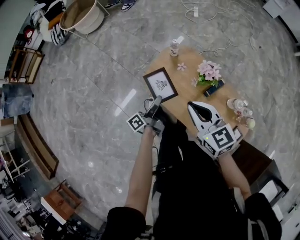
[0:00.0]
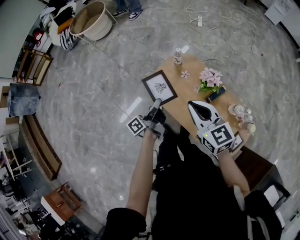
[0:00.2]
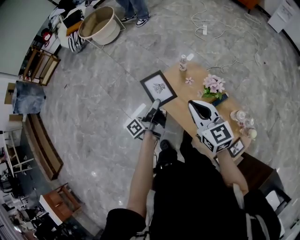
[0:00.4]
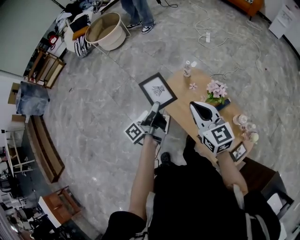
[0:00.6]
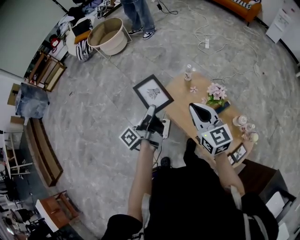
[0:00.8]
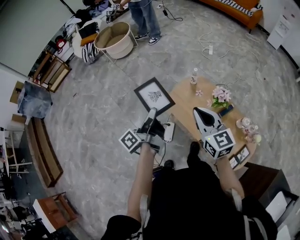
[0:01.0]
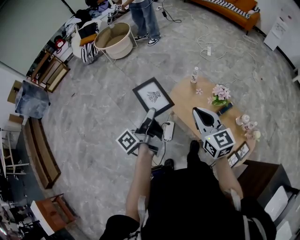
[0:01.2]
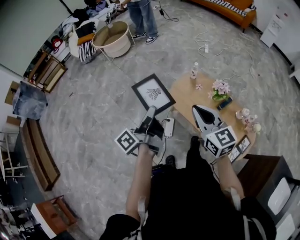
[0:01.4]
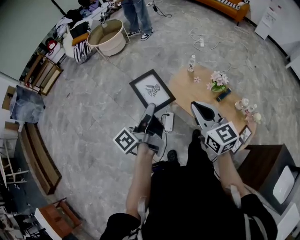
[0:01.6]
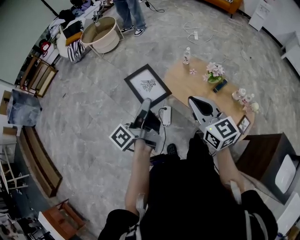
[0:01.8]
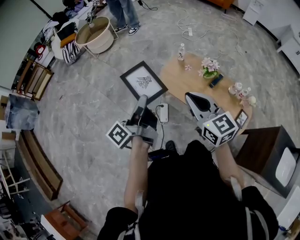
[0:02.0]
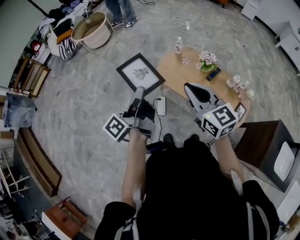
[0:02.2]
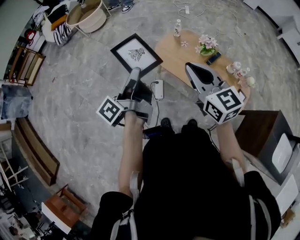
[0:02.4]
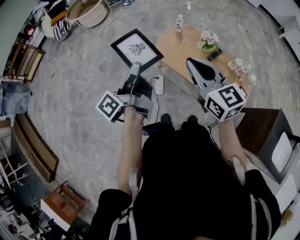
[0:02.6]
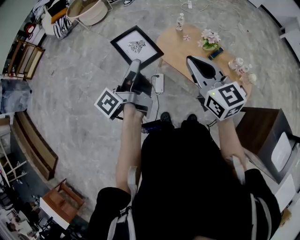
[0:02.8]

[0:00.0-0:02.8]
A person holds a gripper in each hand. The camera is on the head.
0:00.0 to 0:01.4: The left gripper shifts some 40 cm upward, to the left and backward; the right gripper travels to the left, upward and backward by approximately 25 cm.
0:01.4 to 0:02.8: The grippers move only a little.

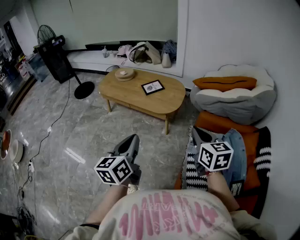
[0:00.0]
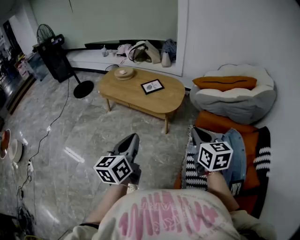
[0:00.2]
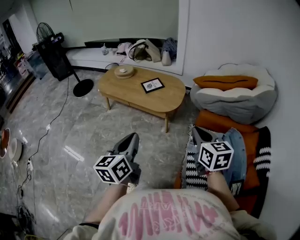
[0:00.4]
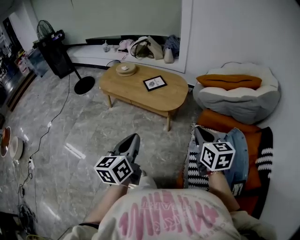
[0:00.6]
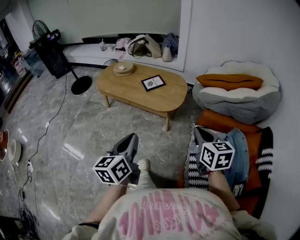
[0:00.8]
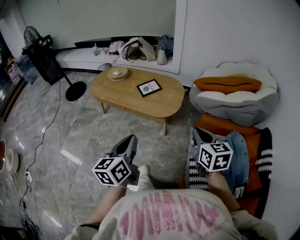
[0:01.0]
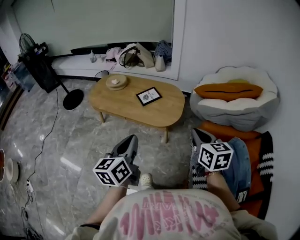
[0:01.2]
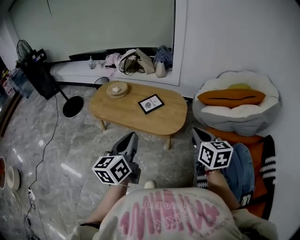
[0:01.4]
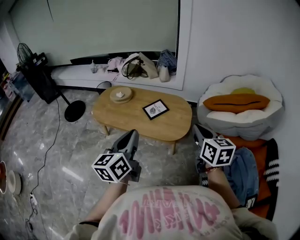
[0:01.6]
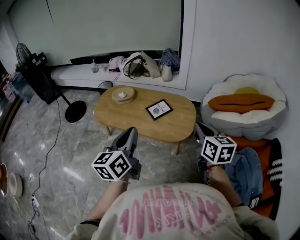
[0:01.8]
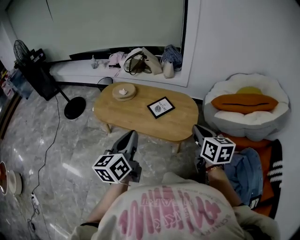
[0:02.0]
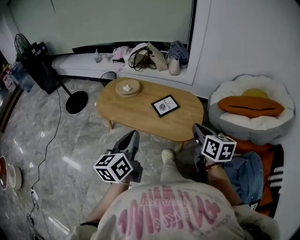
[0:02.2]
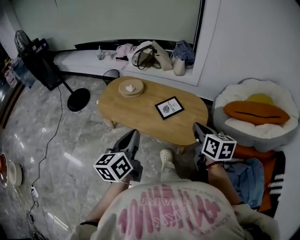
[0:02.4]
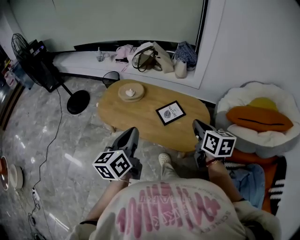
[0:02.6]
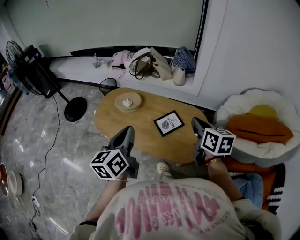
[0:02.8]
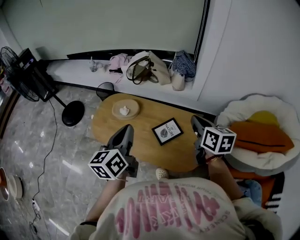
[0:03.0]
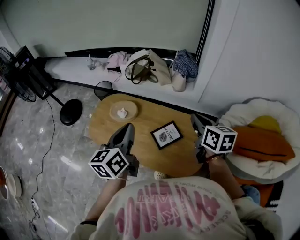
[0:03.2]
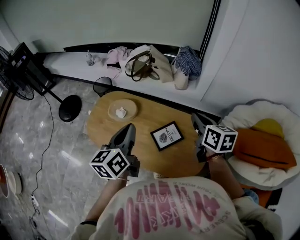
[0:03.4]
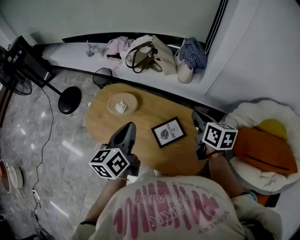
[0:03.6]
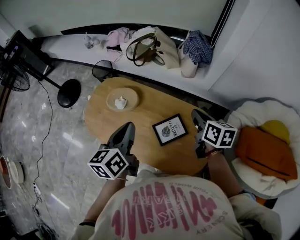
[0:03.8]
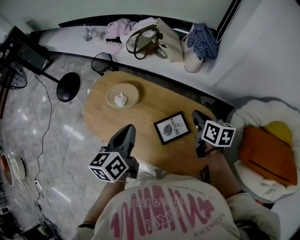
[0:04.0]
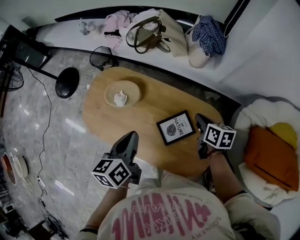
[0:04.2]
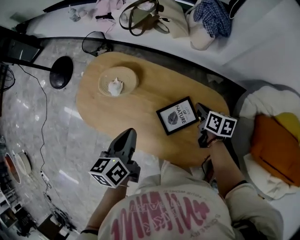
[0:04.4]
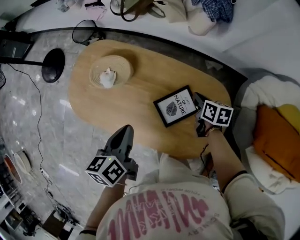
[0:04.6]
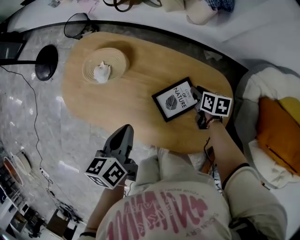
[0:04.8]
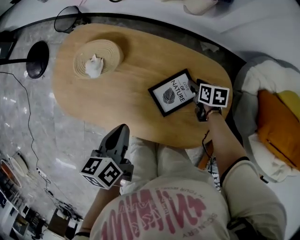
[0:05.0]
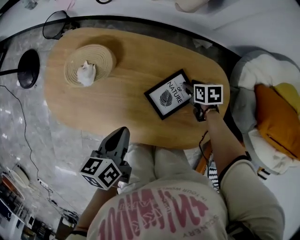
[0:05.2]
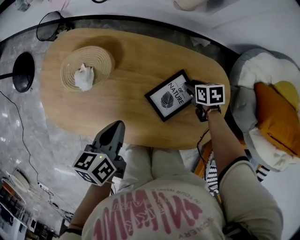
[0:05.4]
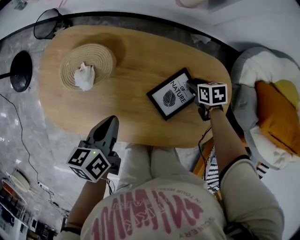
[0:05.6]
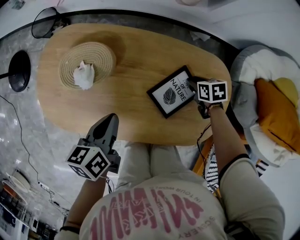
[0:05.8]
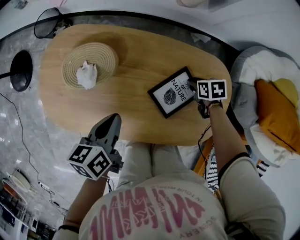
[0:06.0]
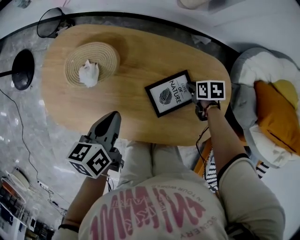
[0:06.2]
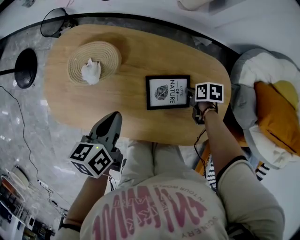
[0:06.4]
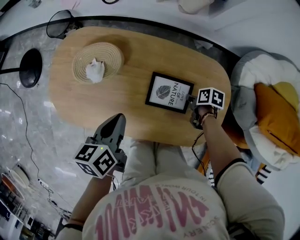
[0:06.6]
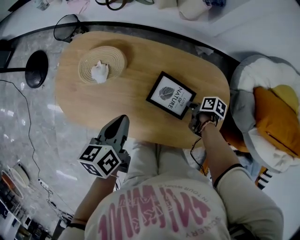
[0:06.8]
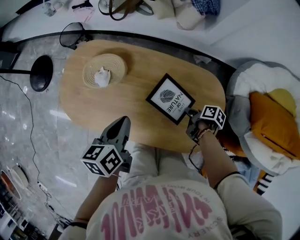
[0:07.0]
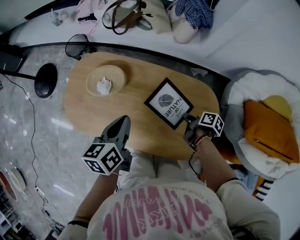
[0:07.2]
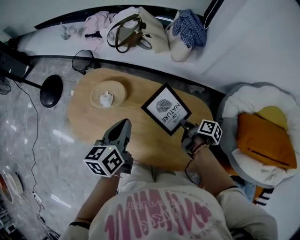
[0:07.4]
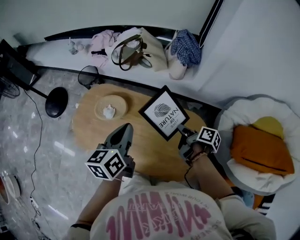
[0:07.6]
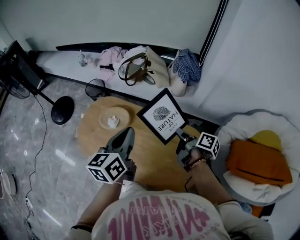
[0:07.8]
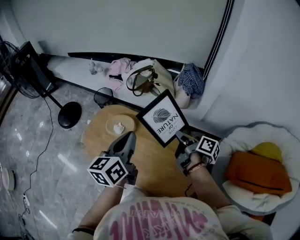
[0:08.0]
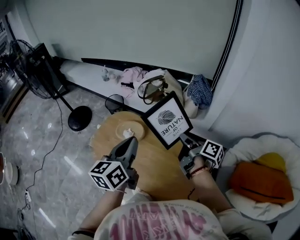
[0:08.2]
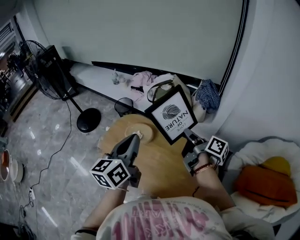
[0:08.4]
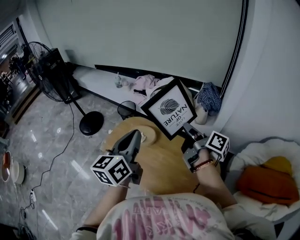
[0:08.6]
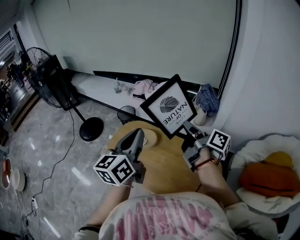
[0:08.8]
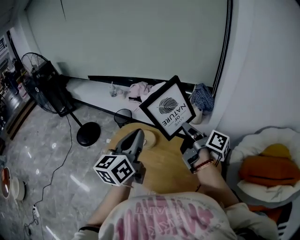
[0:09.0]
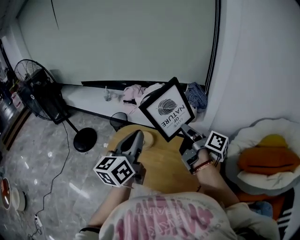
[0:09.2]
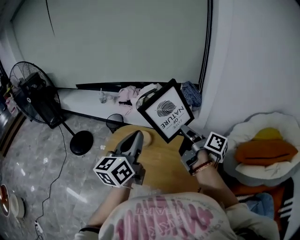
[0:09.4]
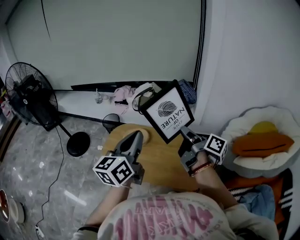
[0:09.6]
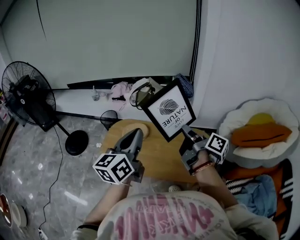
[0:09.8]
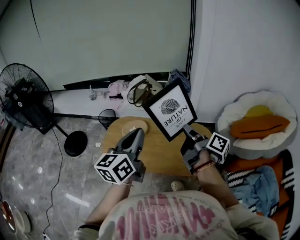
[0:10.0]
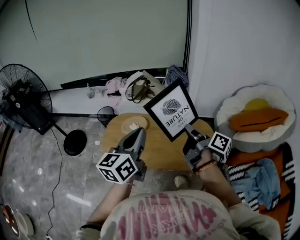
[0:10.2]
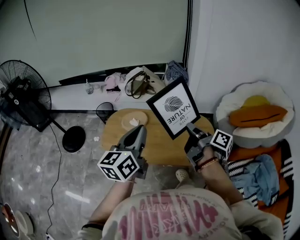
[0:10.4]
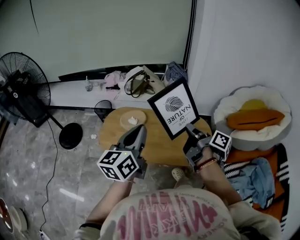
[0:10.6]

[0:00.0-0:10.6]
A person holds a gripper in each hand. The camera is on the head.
0:00.0 to 0:01.6: The two grippers go some 25 cm forward and to the left.
0:01.6 to 0:03.0: The grippers both shift forward by some 35 cm.
0:03.0 to 0:04.6: The two grippers go approximately 35 cm downward and forward. The right gripper rotates about 30 degrees; the left gripper swivels some 30 degrees.
0:04.6 to 0:06.0: Both grippers move downward, roughly 10 cm. The right gripper swivels roughly 20 degrees, and opens up.
0:06.0 to 0:07.6: Both grippers move upward, some 25 cm. The left gripper swivels approximately 30 degrees, while the right gripper angles its fingers upward, by roughly 40 degrees.
0:07.6 to 0:09.0: Both grippers move upward, roughly 25 cm. The left gripper rotates about 30 degrees; the right gripper tips its fingers upward by approximately 30 degrees.
0:09.0 to 0:10.6: The right gripper goes some 15 cm backward, and turns by approximately 20 degrees. Meanwhile the left gripper moves backward, approximately 5 cm.

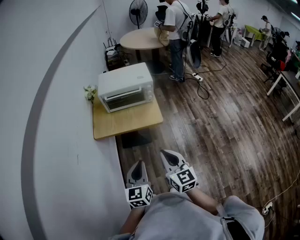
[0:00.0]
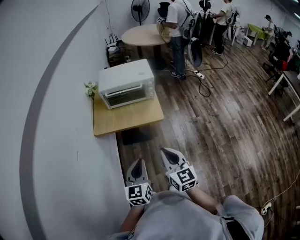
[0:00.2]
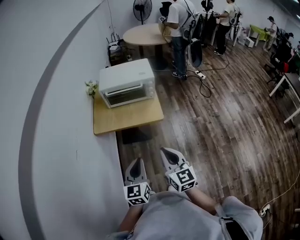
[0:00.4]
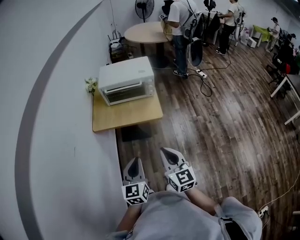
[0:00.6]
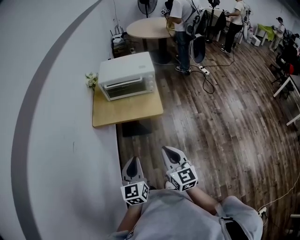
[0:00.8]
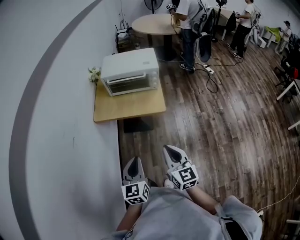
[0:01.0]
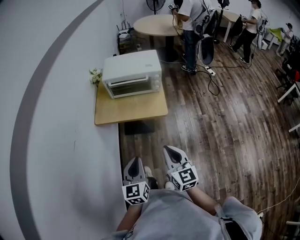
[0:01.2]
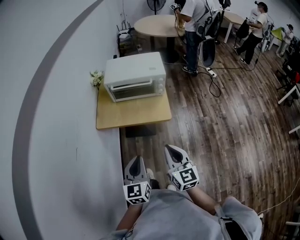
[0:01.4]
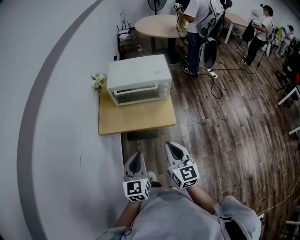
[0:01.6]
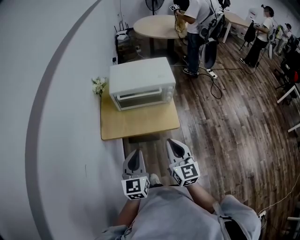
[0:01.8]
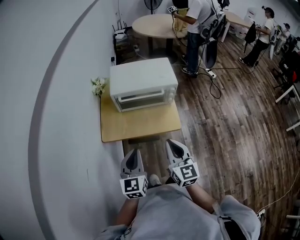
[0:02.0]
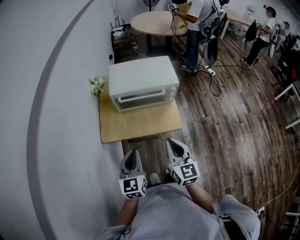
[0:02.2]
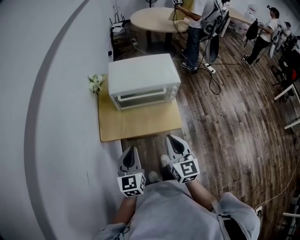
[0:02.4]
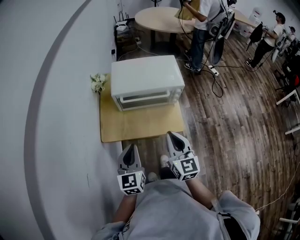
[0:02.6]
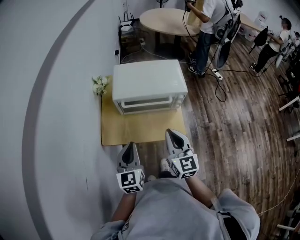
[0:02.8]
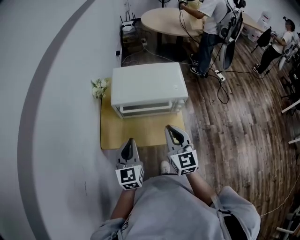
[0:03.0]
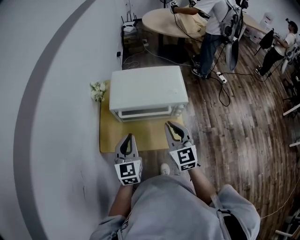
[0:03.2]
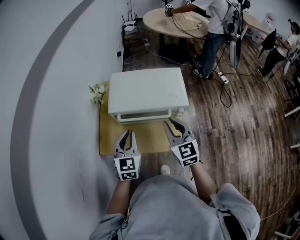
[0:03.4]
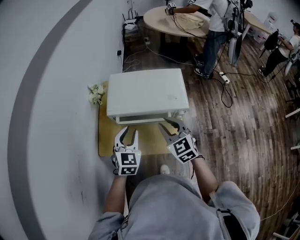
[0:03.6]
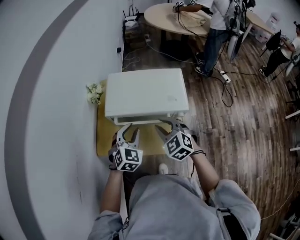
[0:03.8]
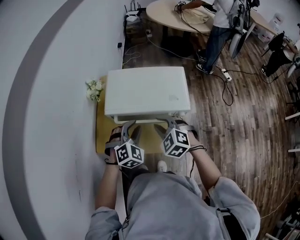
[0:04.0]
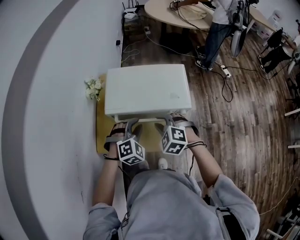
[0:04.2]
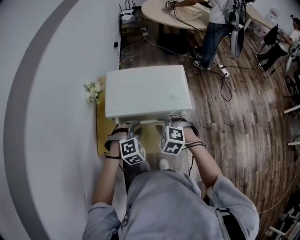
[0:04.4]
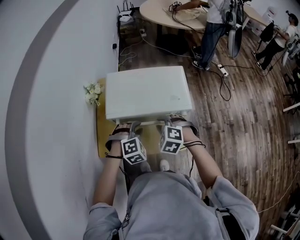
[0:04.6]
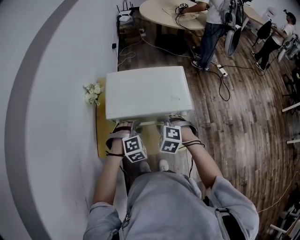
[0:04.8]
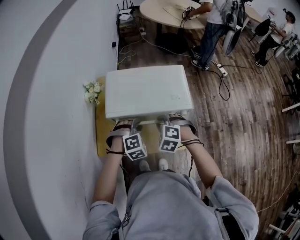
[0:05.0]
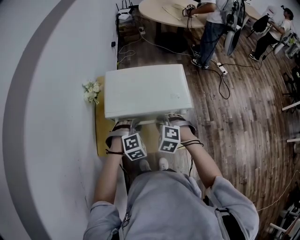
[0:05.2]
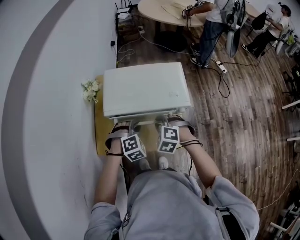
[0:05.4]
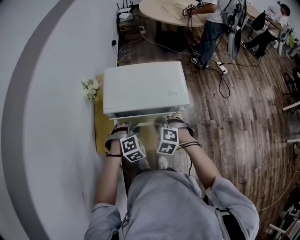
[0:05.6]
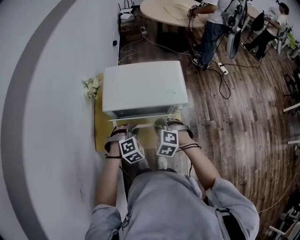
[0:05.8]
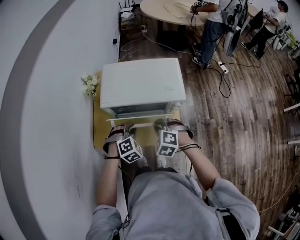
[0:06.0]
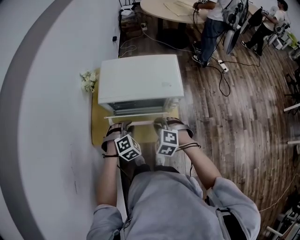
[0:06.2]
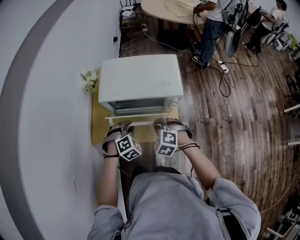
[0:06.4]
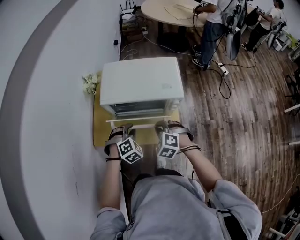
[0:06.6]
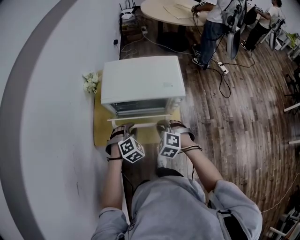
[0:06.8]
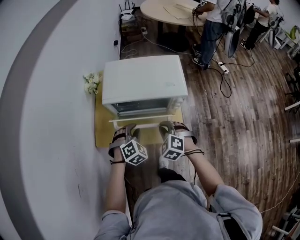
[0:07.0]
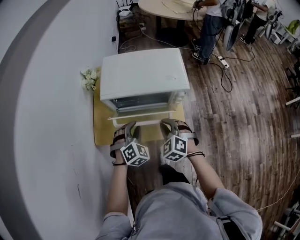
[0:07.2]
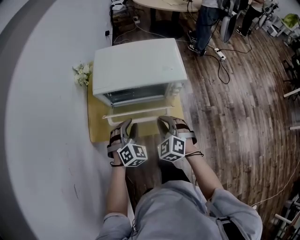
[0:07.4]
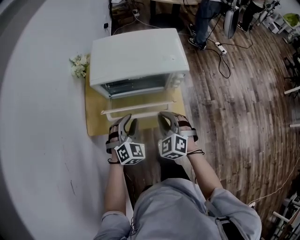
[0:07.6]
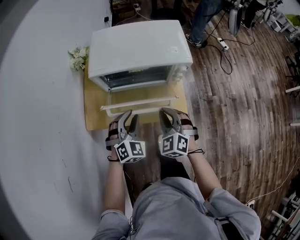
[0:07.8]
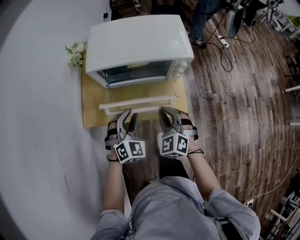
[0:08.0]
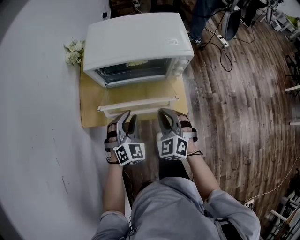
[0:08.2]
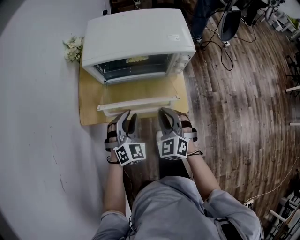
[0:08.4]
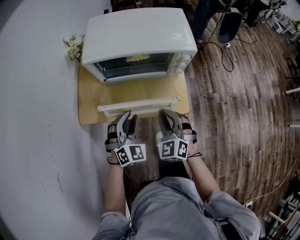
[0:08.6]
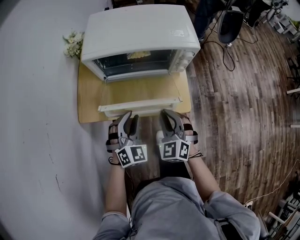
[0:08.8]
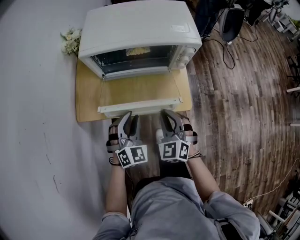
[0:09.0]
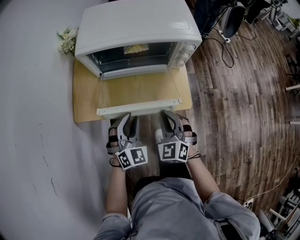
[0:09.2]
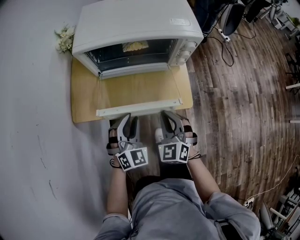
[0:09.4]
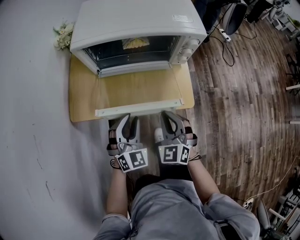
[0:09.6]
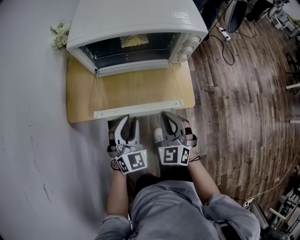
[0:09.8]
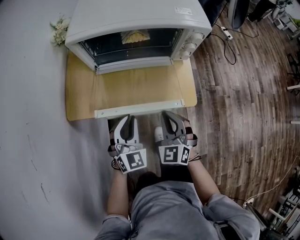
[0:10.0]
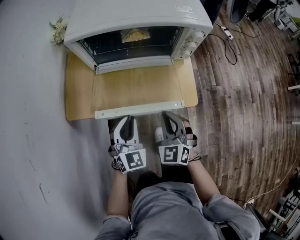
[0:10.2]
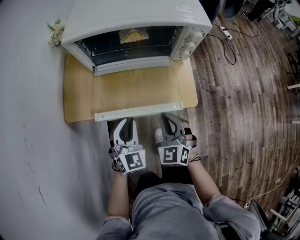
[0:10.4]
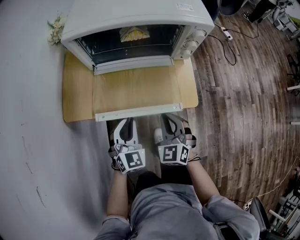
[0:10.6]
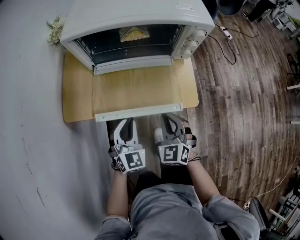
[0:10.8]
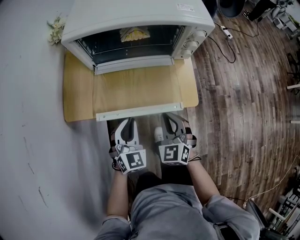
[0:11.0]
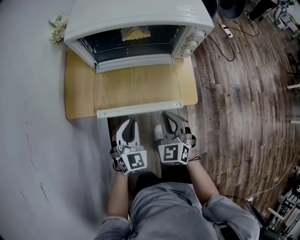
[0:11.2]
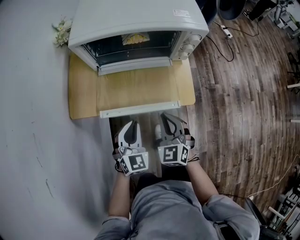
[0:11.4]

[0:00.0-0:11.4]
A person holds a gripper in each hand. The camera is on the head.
0:00.0 to 0:01.4: The two grippers go roughly 5 cm forward.
0:01.4 to 0:02.8: Both grippers move forward, roughly 25 cm.
0:02.8 to 0:04.2: The left gripper moves forward and to the right, roughly 20 cm, rotates around the line of its fingers by approximately 60 degrees, clockwise from behind, and opens up. The right gripper goes about 20 cm forward and downward, angles its fingers downward, by roughly 40 degrees, and opens its fingers.
0:04.2 to 0:05.6: The left gripper shifts by about 5 cm.
0:05.6 to 0:07.2: Both grippers move backward, some 5 cm. The right gripper swivels some 20 degrees. The left gripper turns by some 20 degrees.
0:07.2 to 0:08.6: The left gripper travels backward and downward by some 10 cm. Meanwhile the right gripper goes some 10 cm downward and backward.
0:08.6 to 0:10.0: Both grippers move downward, roughly 10 cm.
0:10.0 to 0:11.4: The grippers stay close to where they were, moving slightly.
